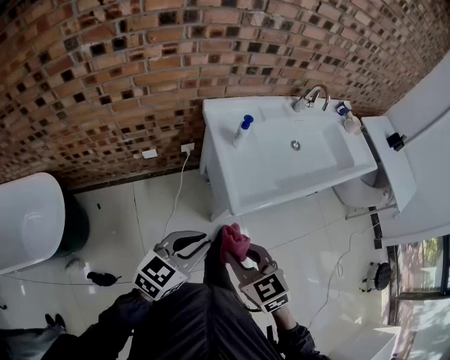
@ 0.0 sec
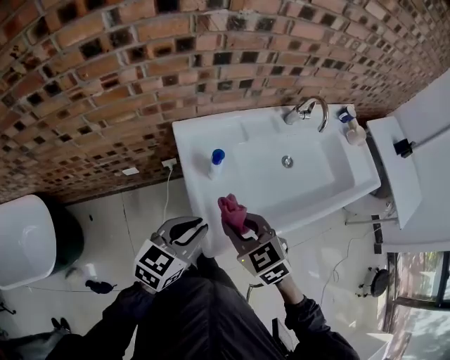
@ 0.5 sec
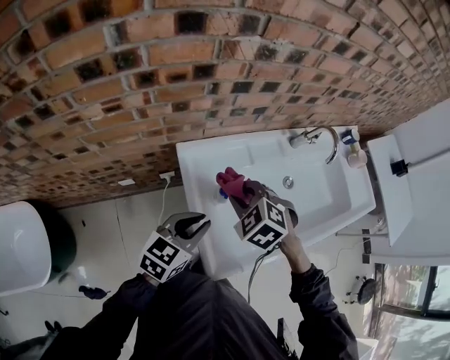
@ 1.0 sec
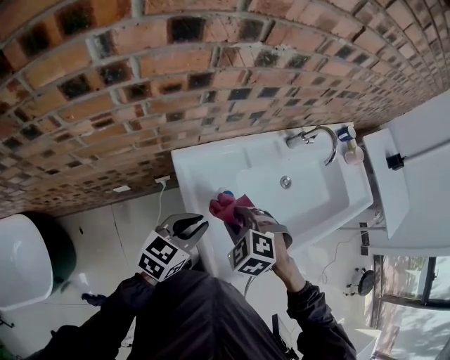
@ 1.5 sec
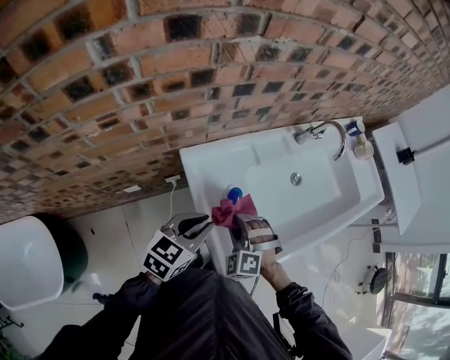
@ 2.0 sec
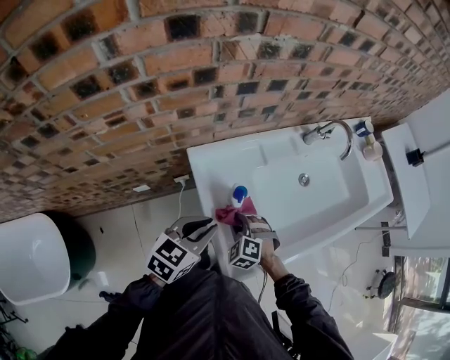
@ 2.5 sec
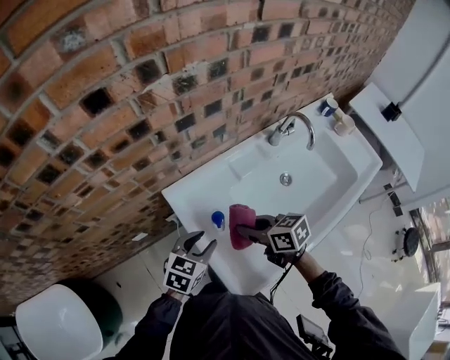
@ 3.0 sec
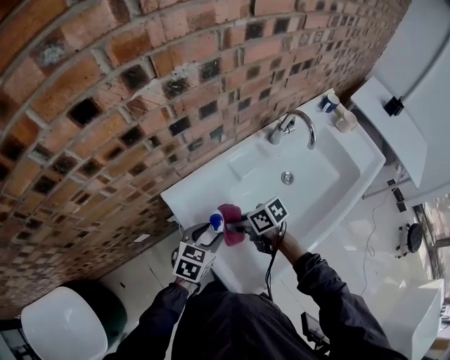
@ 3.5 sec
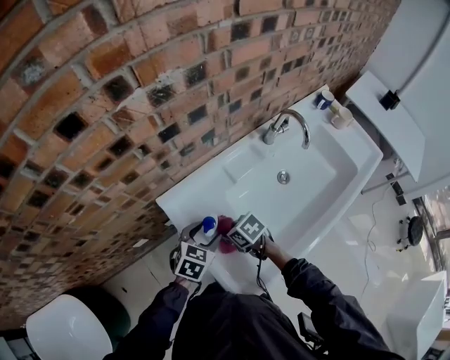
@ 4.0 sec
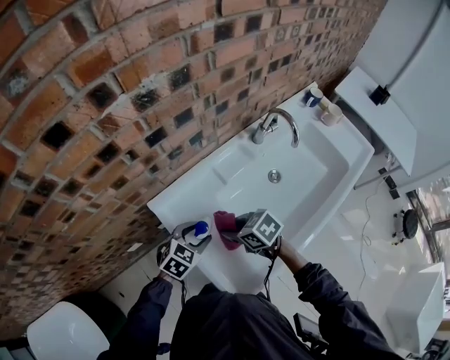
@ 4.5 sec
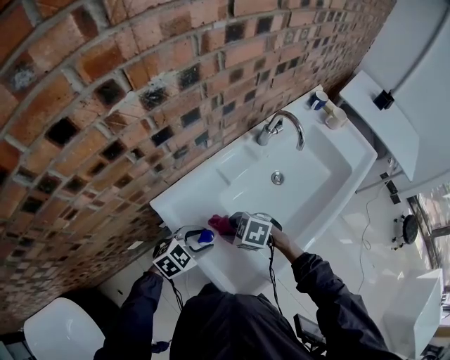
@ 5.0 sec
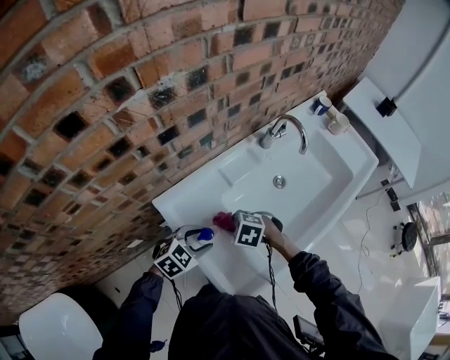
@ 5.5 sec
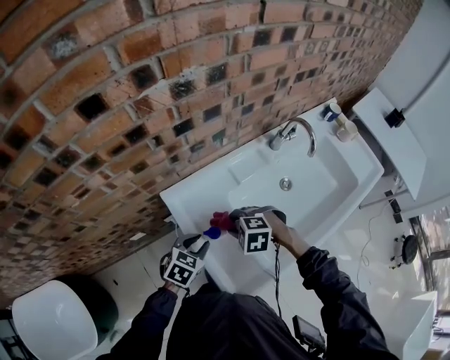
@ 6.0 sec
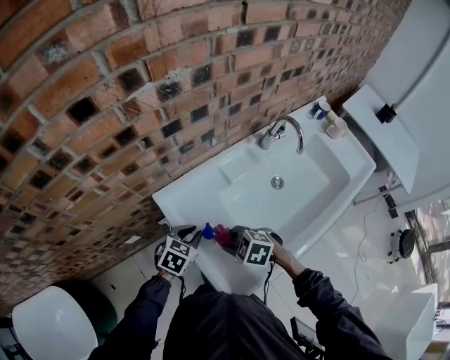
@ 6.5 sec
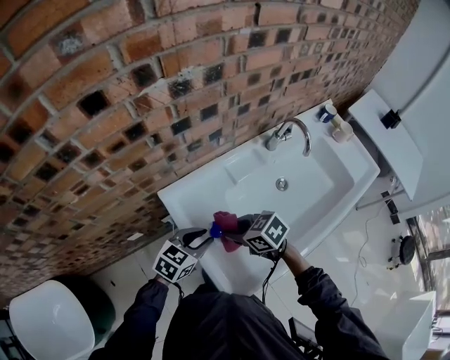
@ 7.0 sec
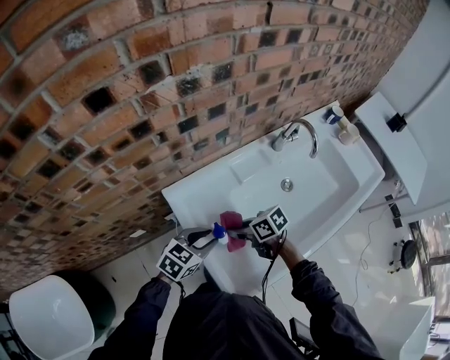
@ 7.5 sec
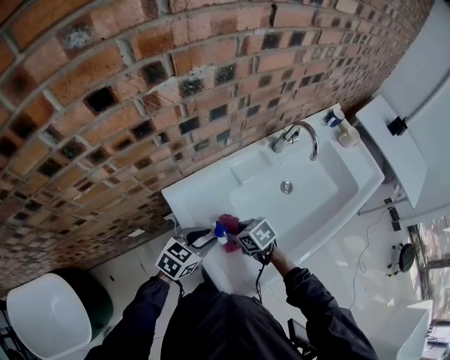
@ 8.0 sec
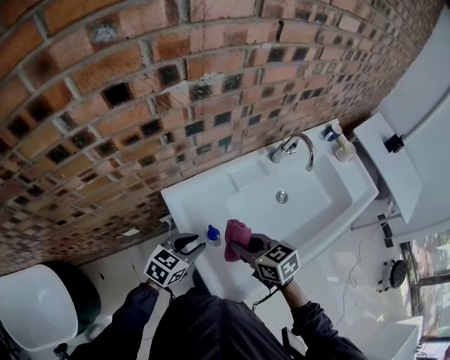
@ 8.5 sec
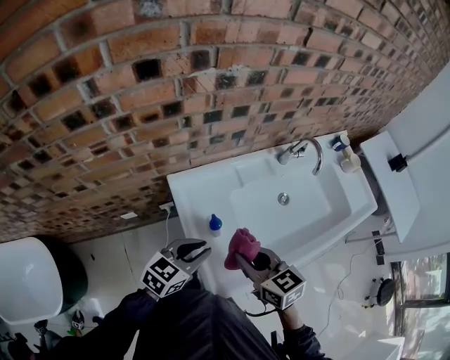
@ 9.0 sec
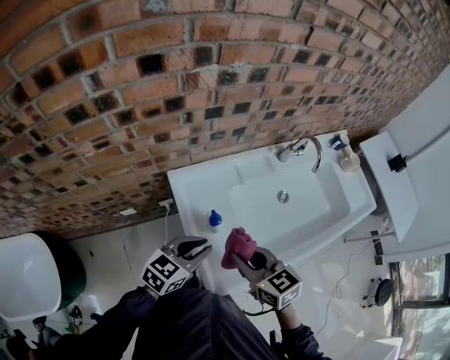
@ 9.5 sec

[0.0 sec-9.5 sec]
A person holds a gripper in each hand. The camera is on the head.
0.0 sec to 2.0 sec: The two grippers go about 35 cm forward. The right gripper twists roughly 50 degrees counterclockwise, seen from behind.
2.0 sec to 4.0 sec: The left gripper travels downward by some 10 cm, turns by some 20 degrees, and opens its fingers. Meanwhile the right gripper moves up and down over approximately 15 cm, changing direction 2 times, and rolls clockwise, seen from behind, by some 70 degrees.
4.0 sec to 5.5 sec: The left gripper changes its angle by approximately 30 degrees. Meanwhile the right gripper turns by some 40 degrees.
5.5 sec to 7.5 sec: The left gripper changes its angle by approximately 20 degrees. The right gripper travels upward and back again, about 10 cm each way, and tips its fingers upward by some 30 degrees.
7.5 sec to 9.5 sec: The right gripper heads upward, covering approximately 15 cm, and rotates approximately 40 degrees. Meanwhile the left gripper travels upward by approximately 10 cm.

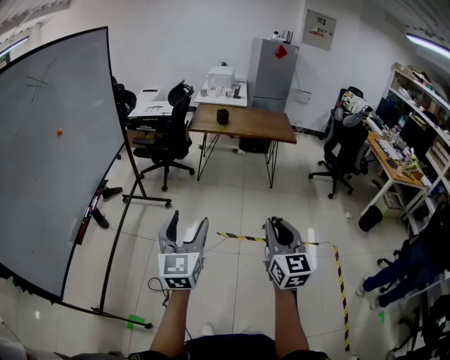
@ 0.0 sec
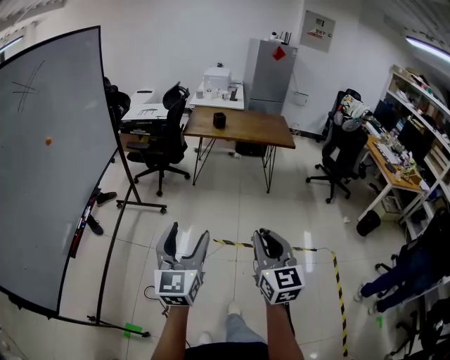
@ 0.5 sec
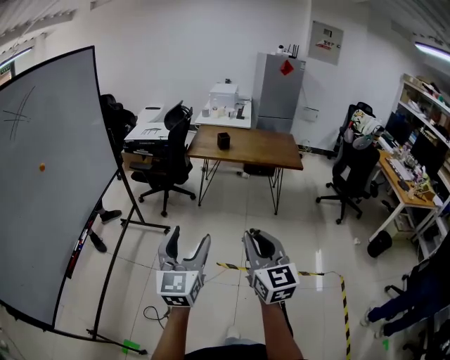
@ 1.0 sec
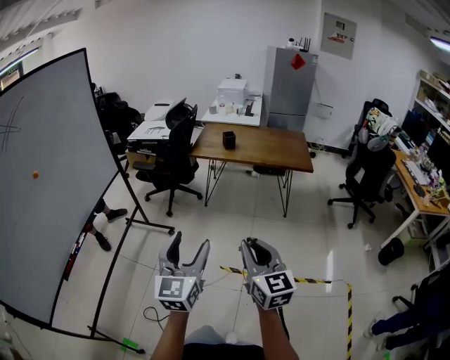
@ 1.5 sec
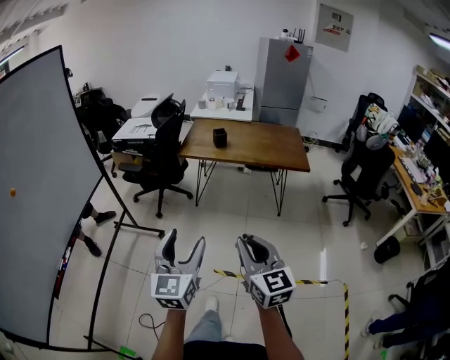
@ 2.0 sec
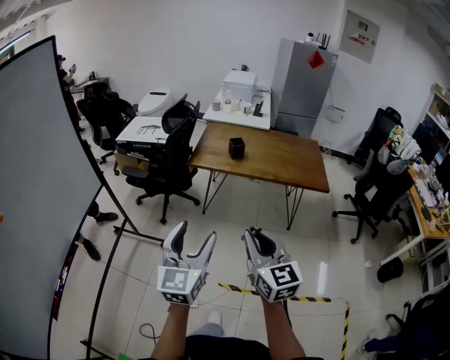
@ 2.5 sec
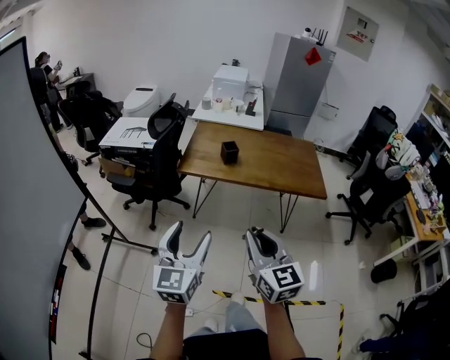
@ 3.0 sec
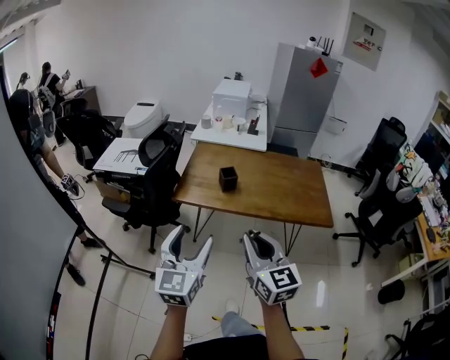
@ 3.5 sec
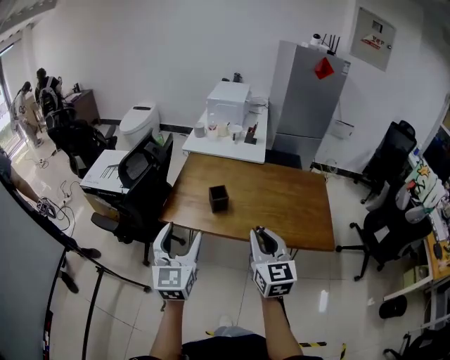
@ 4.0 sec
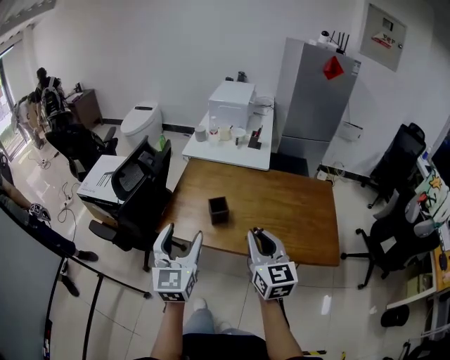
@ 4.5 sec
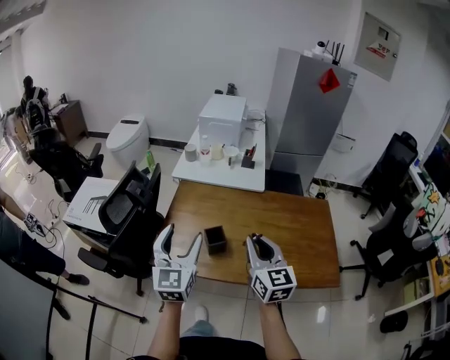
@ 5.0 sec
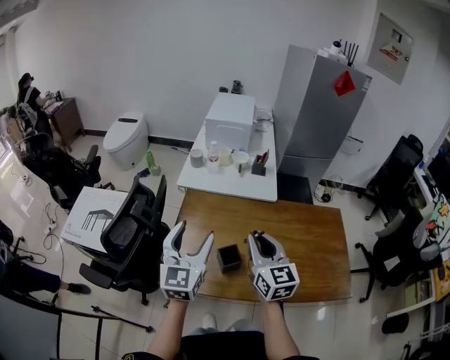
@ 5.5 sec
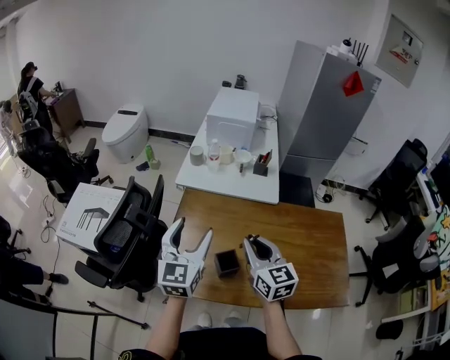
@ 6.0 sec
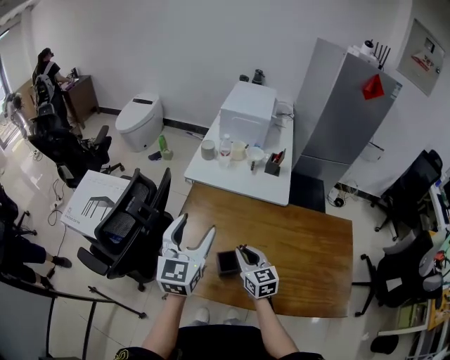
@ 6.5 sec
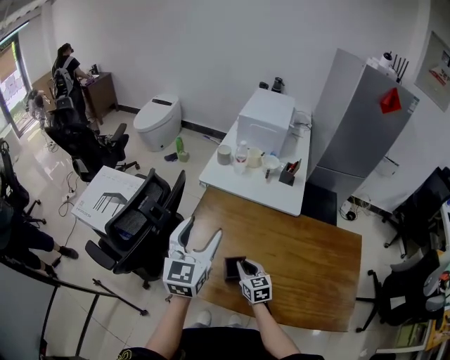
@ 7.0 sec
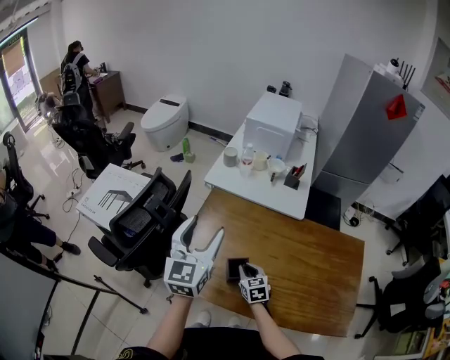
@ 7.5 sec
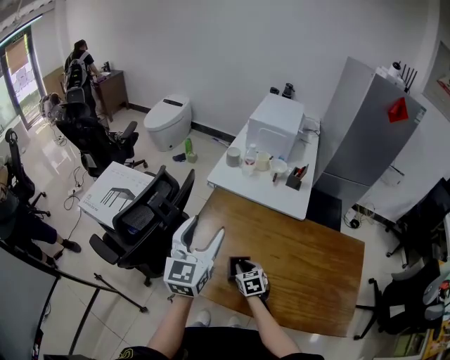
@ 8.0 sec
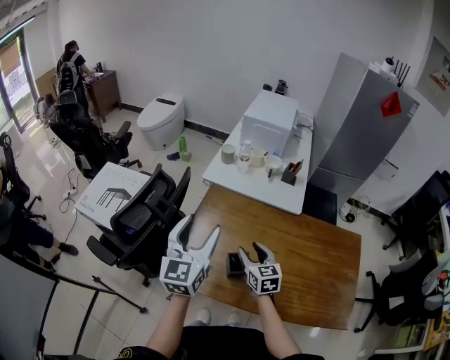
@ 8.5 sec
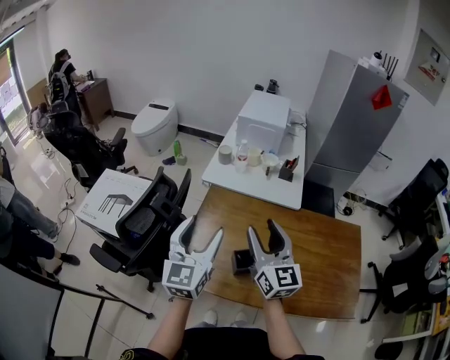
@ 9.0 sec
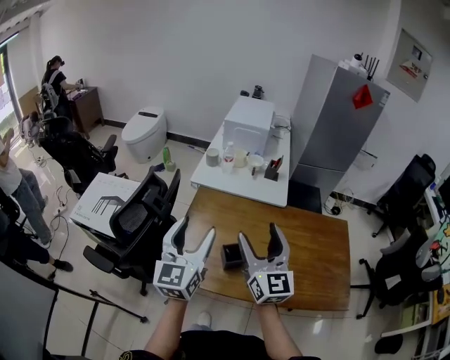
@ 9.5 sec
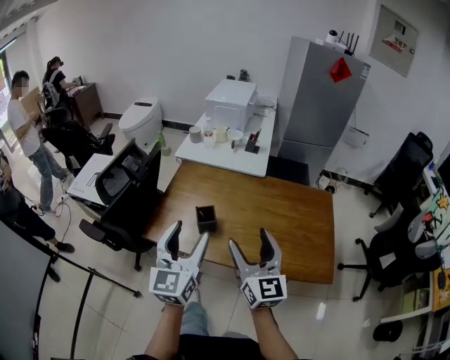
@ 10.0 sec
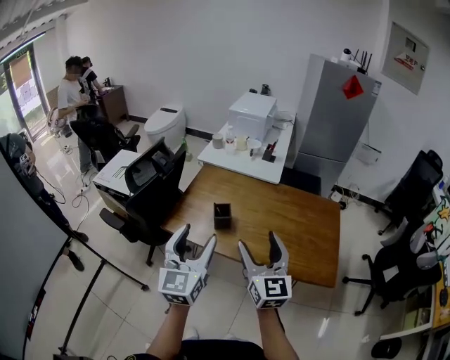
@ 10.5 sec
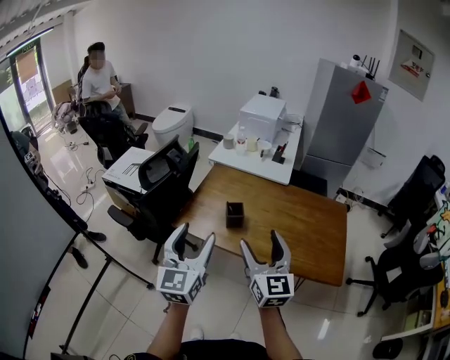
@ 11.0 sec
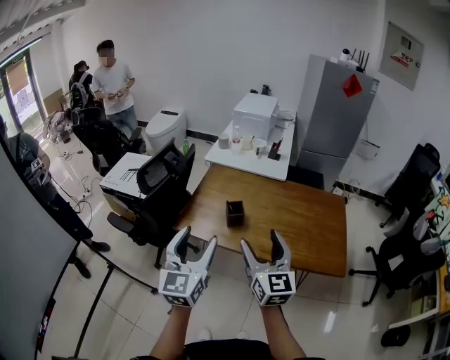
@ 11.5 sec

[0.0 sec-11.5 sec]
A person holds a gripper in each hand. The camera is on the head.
0.0 sec to 2.0 sec: The right gripper goes some 35 cm forward. The left gripper heads forward and to the right, covering some 35 cm.
2.0 sec to 4.0 sec: Both grippers are carried forward, about 60 cm.
4.0 sec to 6.0 sec: Both grippers move forward, roughly 35 cm.
6.0 sec to 7.5 sec: The right gripper moves downward, approximately 25 cm, and rotates about 30 degrees.
7.5 sec to 9.5 sec: The left gripper heads backward, covering approximately 10 cm; the right gripper goes about 35 cm upward, tilts its fingers about 50 degrees upward, and opens.
9.5 sec to 11.5 sec: Both grippers move backward, some 25 cm.

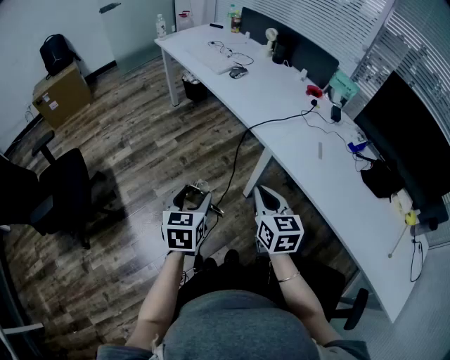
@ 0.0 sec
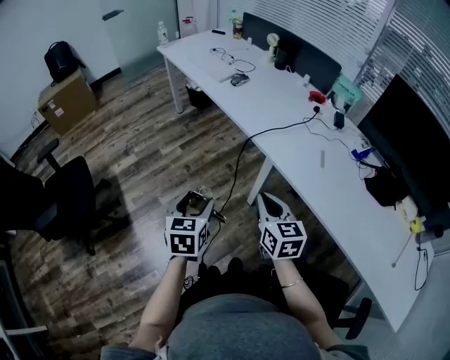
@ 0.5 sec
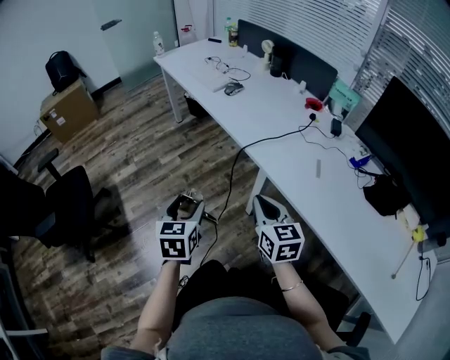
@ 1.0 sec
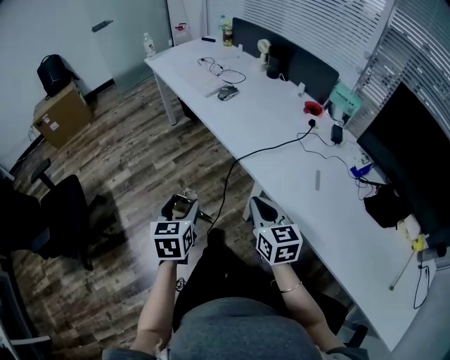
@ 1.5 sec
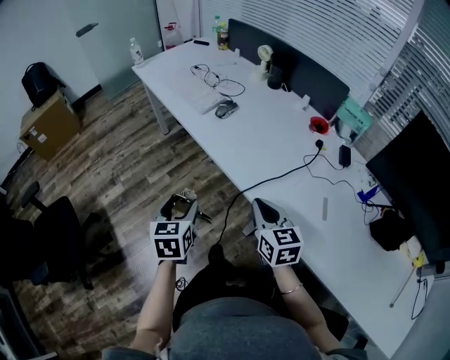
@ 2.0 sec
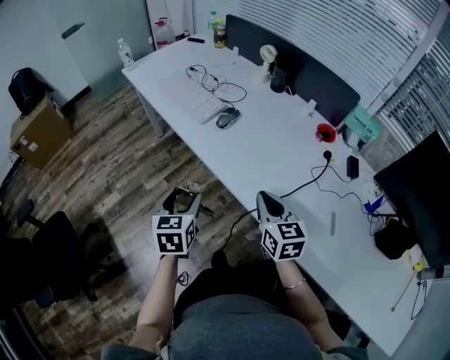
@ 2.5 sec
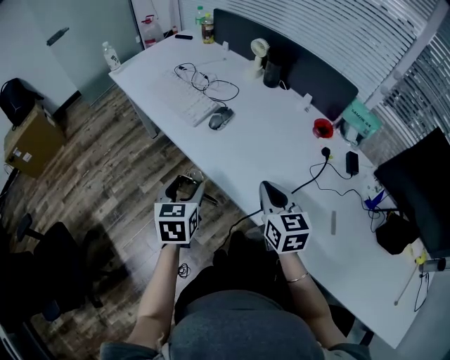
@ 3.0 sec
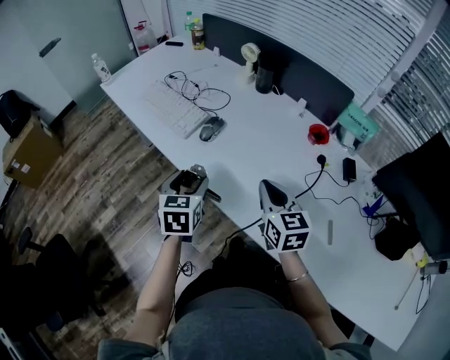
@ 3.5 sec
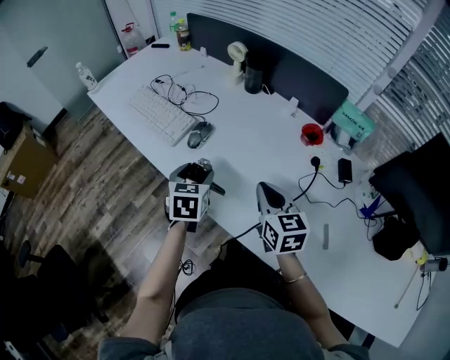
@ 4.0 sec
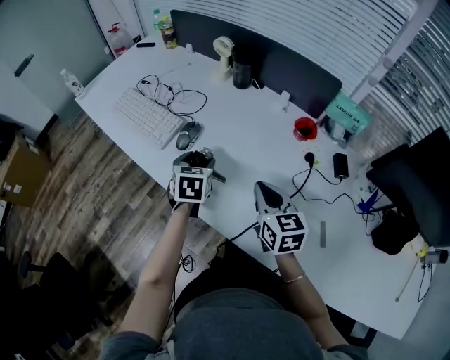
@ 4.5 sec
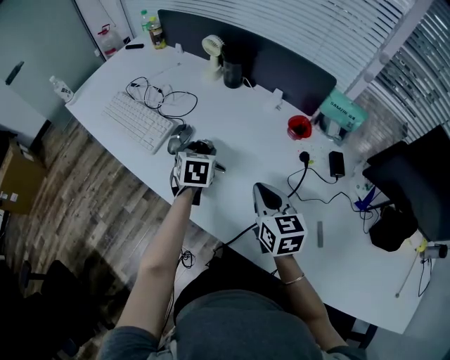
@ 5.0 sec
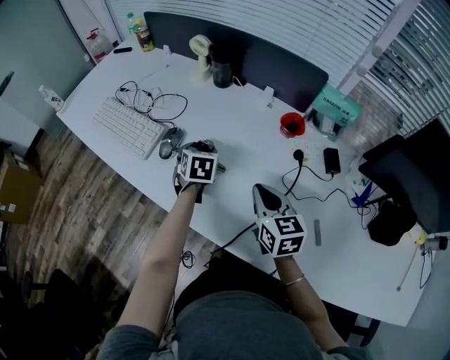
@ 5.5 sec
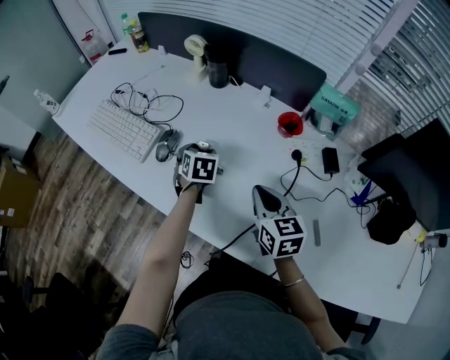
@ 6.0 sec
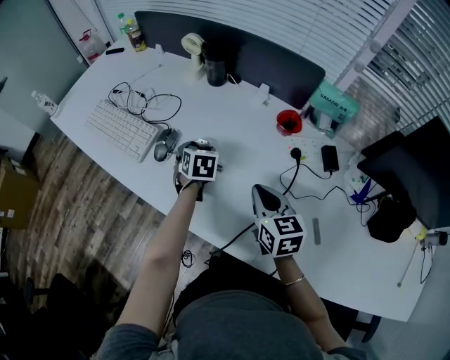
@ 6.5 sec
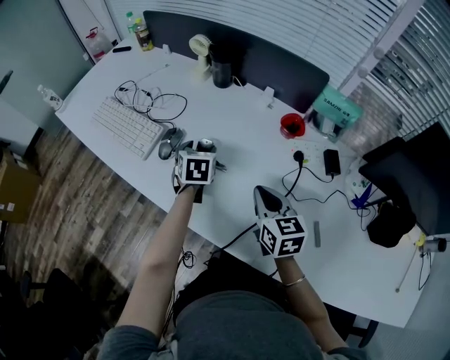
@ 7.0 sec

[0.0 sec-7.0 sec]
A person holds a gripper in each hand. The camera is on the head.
0.0 sec to 2.0 sec: The grippers both shift forward by roughly 25 cm.
2.0 sec to 3.5 sec: The two grippers go approximately 20 cm forward.
3.5 sec to 5.0 sec: The left gripper shifts some 20 cm forward and to the right. The right gripper is displaced to the right by about 5 cm.
